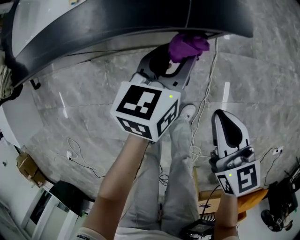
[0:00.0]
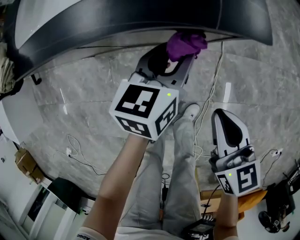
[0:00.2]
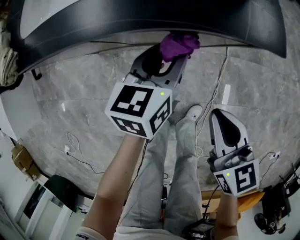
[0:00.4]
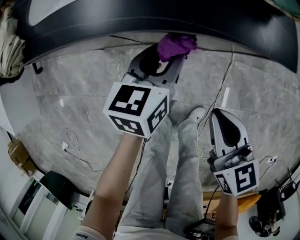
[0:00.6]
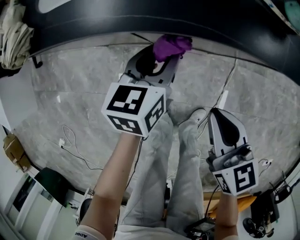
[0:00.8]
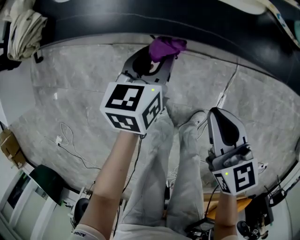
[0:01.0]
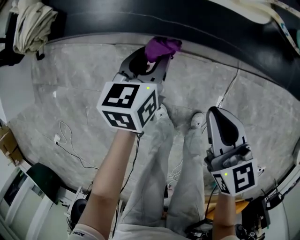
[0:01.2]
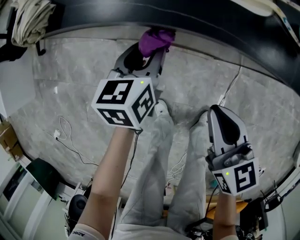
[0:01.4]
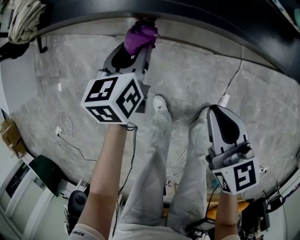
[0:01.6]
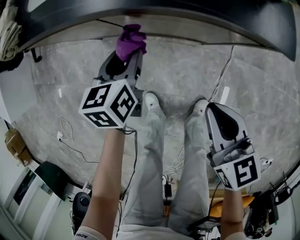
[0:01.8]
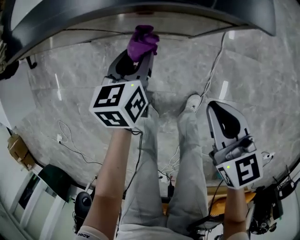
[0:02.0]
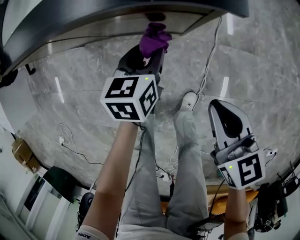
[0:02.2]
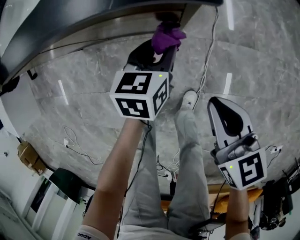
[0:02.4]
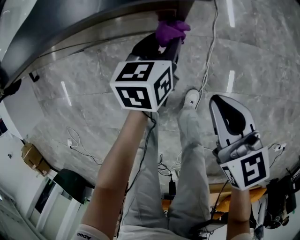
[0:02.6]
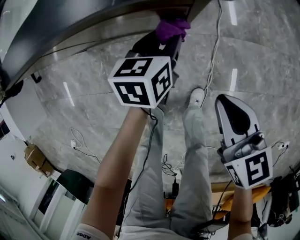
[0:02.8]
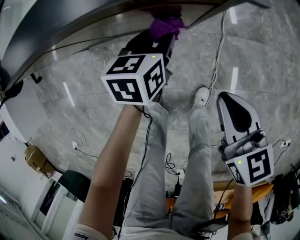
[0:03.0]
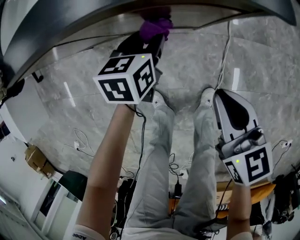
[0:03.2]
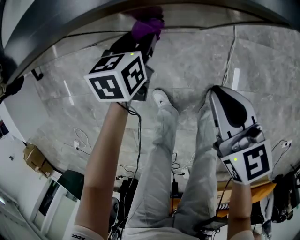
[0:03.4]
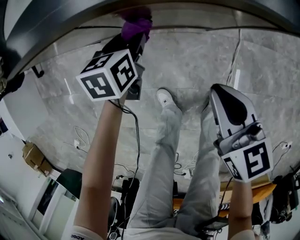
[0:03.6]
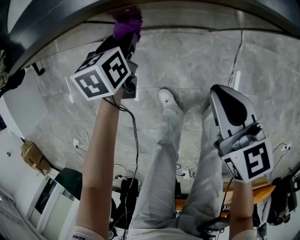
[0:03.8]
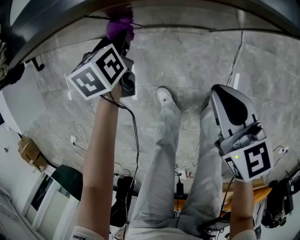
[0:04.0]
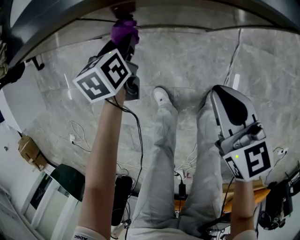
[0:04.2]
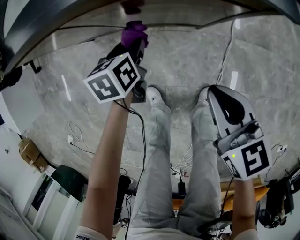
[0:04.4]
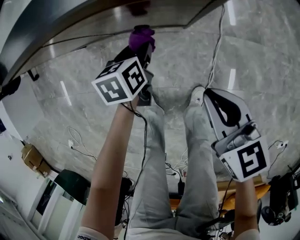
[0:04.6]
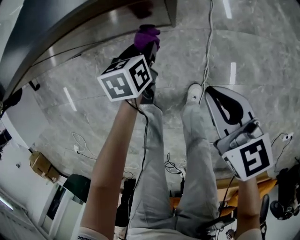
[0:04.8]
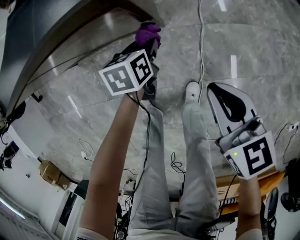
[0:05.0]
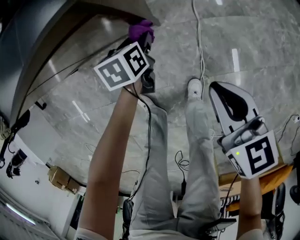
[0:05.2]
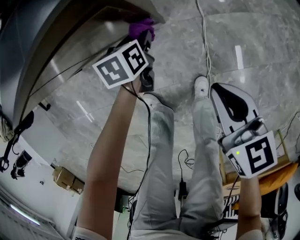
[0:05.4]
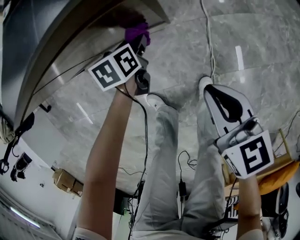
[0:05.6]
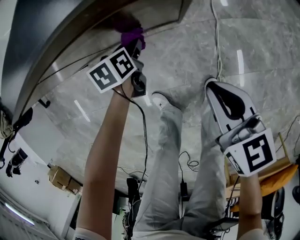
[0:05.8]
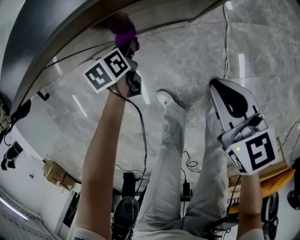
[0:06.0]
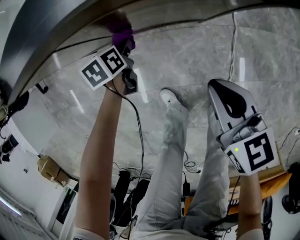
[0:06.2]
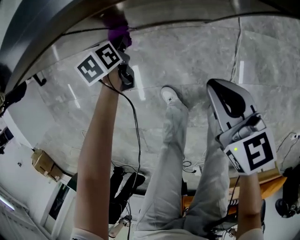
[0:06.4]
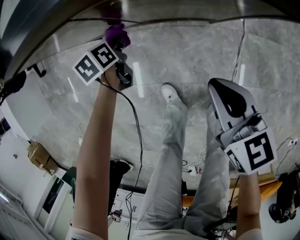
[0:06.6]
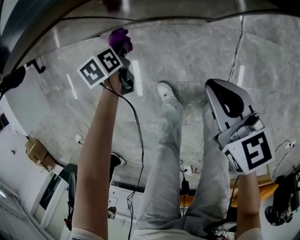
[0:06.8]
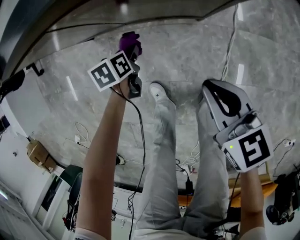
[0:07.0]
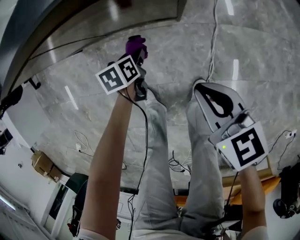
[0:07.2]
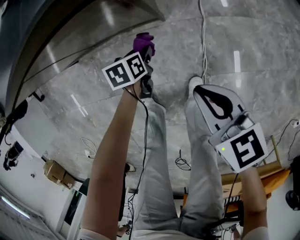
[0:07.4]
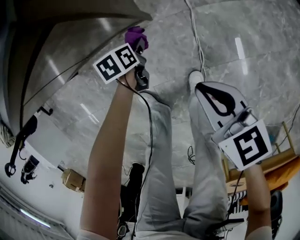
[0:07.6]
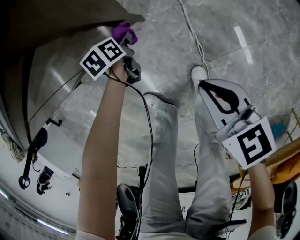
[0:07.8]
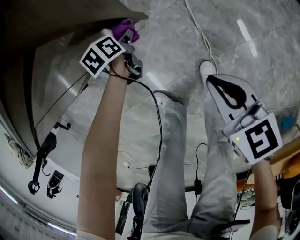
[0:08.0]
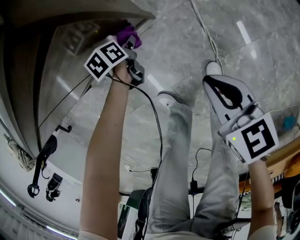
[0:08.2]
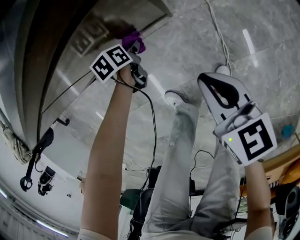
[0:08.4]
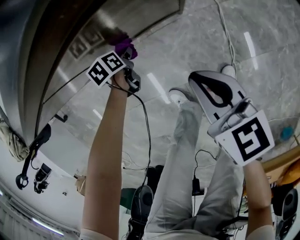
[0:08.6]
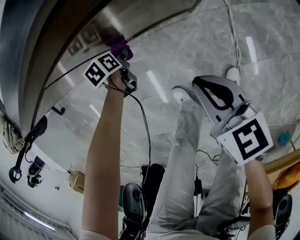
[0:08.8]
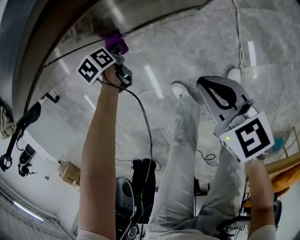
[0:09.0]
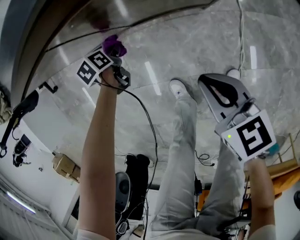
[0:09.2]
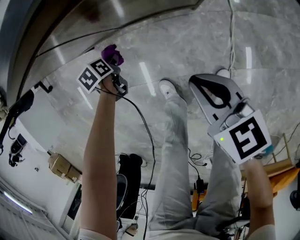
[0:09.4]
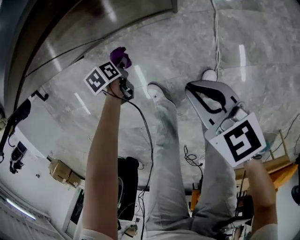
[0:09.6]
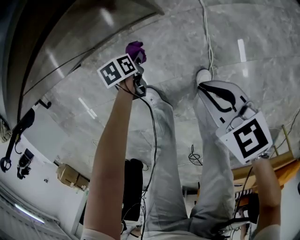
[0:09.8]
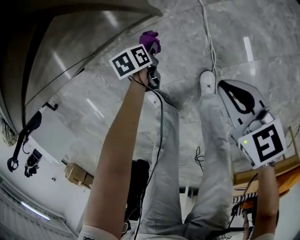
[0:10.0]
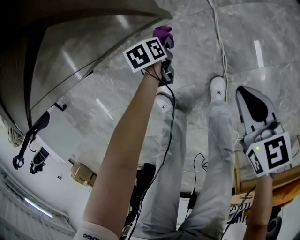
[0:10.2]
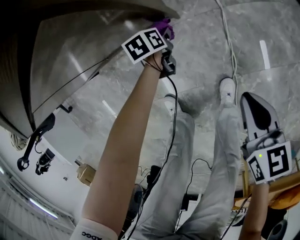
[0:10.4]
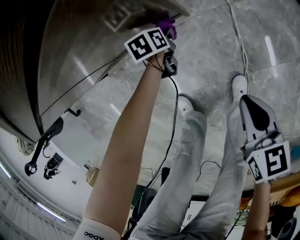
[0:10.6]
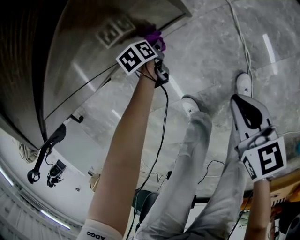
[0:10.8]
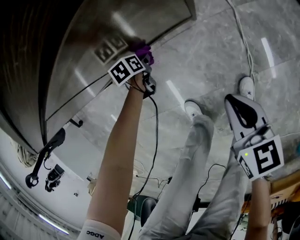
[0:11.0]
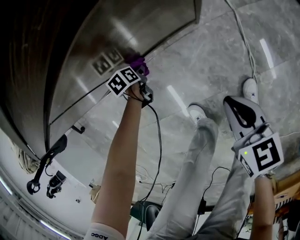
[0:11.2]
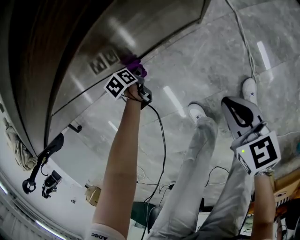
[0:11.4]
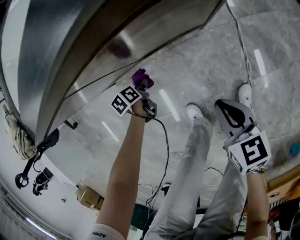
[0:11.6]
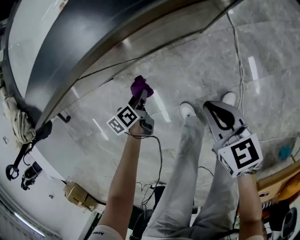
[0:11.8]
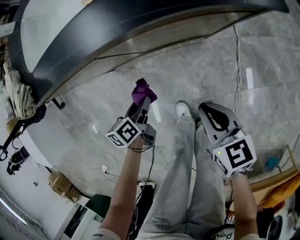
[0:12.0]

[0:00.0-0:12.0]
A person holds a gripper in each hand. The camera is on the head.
0:00.0 to 0:01.6: The right gripper shifts some 20 cm to the left, while the left gripper moves to the left, approximately 30 cm, and changes its angle by approximately 30 degrees.
0:01.6 to 0:03.0: The two grippers go about 25 cm to the right. The left gripper turns by roughly 20 degrees.
0:03.0 to 0:04.4: The left gripper shifts roughly 15 cm to the left. Meanwhile the right gripper travels to the left by about 10 cm.
0:04.4 to 0:06.0: The right gripper moves some 15 cm to the right and comes back. The left gripper heads downward, covering about 10 cm, and reaches roughly 25 cm to the right, then returns.
0:06.0 to 0:07.6: Both grippers move to the right and backward, some 15 cm.
0:07.6 to 0:09.0: Both grippers move to the left, roughly 30 cm.
0:09.0 to 0:10.4: The right gripper moves approximately 30 cm. Meanwhile the left gripper shifts by about 35 cm.
0:10.4 to 0:12.0: The left gripper ends up roughly 40 cm from where it was, and swivels approximately 30 degrees. Meanwhile the right gripper changes place by roughly 35 cm.

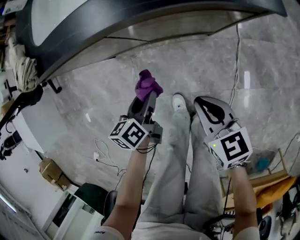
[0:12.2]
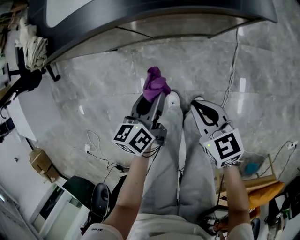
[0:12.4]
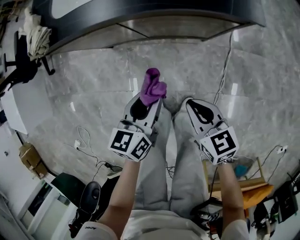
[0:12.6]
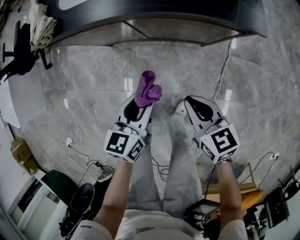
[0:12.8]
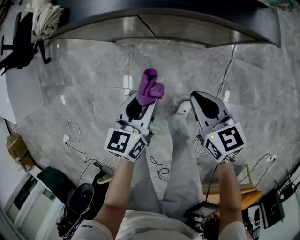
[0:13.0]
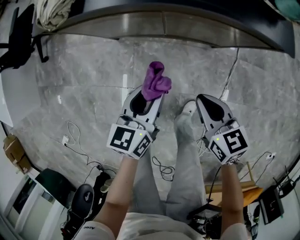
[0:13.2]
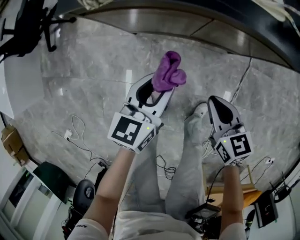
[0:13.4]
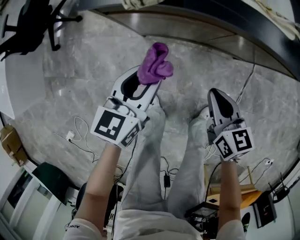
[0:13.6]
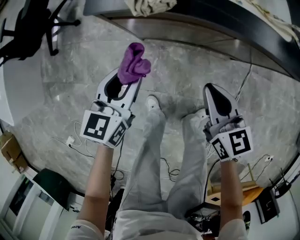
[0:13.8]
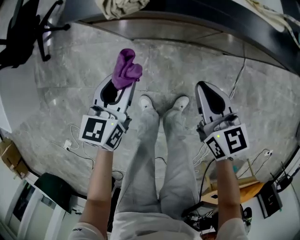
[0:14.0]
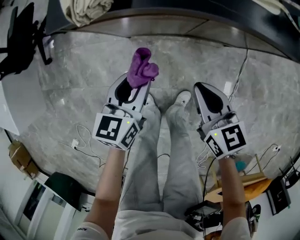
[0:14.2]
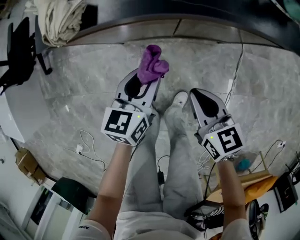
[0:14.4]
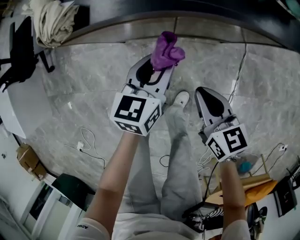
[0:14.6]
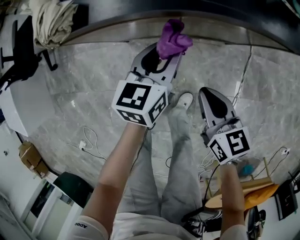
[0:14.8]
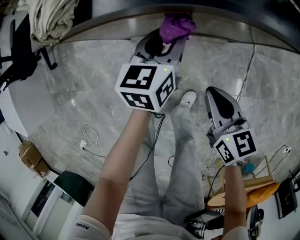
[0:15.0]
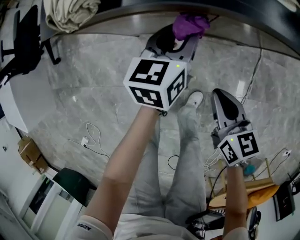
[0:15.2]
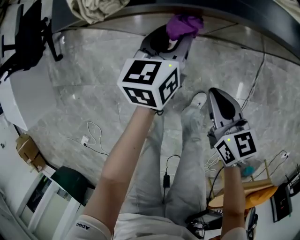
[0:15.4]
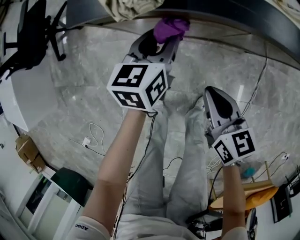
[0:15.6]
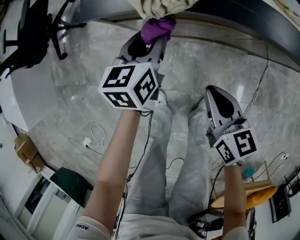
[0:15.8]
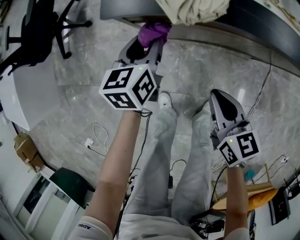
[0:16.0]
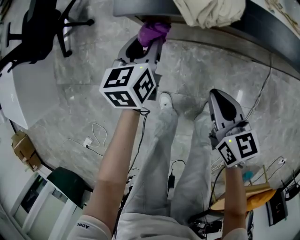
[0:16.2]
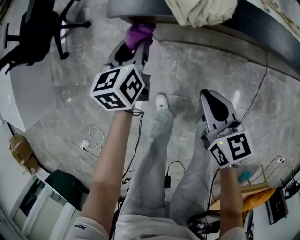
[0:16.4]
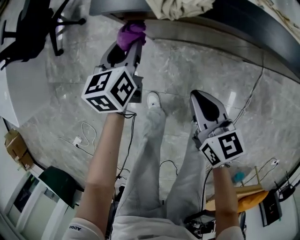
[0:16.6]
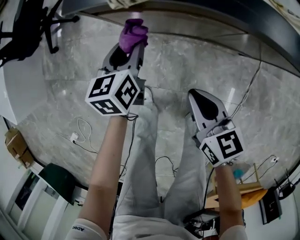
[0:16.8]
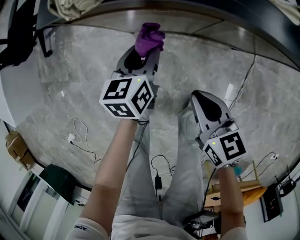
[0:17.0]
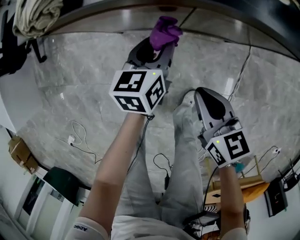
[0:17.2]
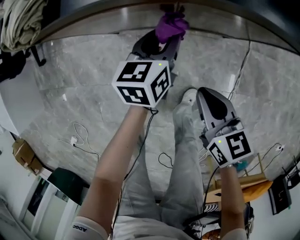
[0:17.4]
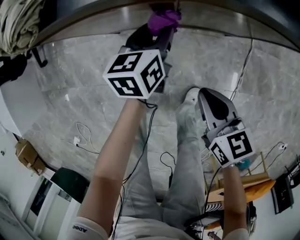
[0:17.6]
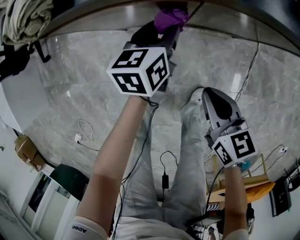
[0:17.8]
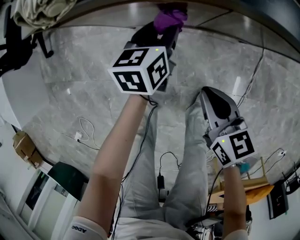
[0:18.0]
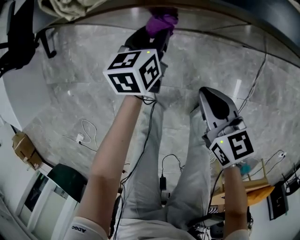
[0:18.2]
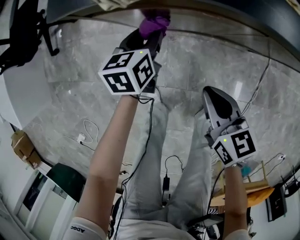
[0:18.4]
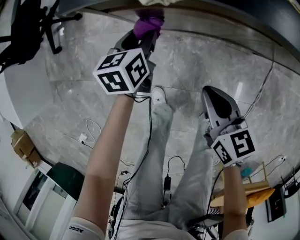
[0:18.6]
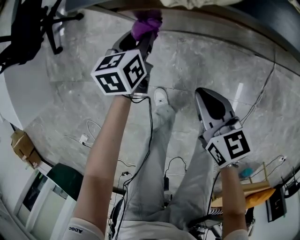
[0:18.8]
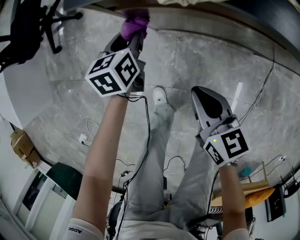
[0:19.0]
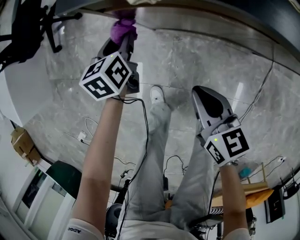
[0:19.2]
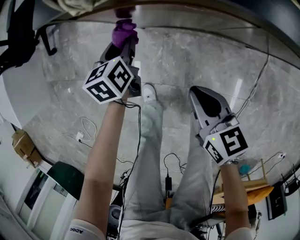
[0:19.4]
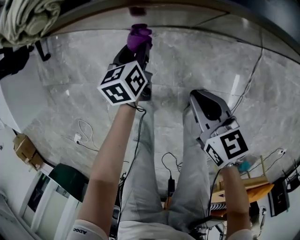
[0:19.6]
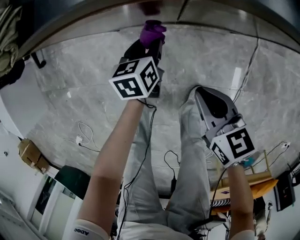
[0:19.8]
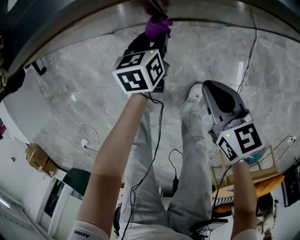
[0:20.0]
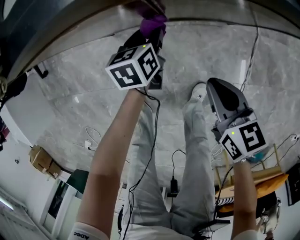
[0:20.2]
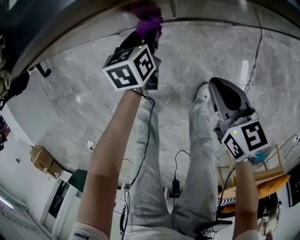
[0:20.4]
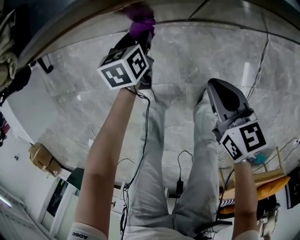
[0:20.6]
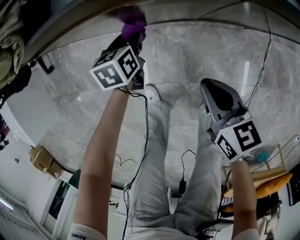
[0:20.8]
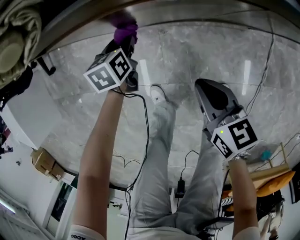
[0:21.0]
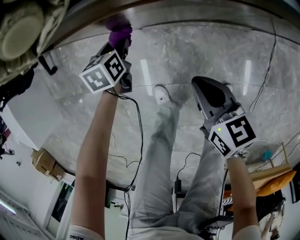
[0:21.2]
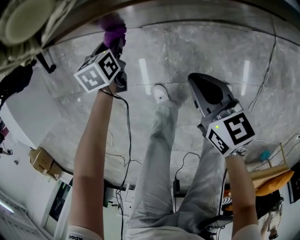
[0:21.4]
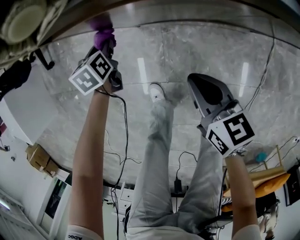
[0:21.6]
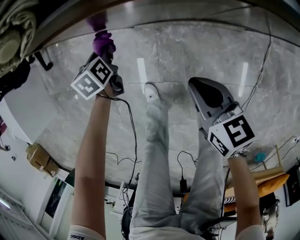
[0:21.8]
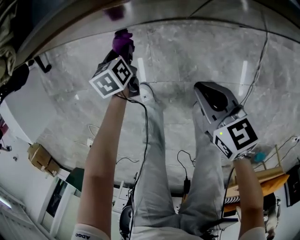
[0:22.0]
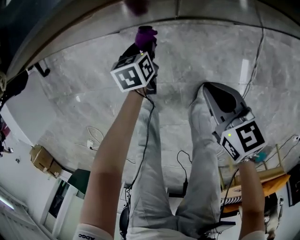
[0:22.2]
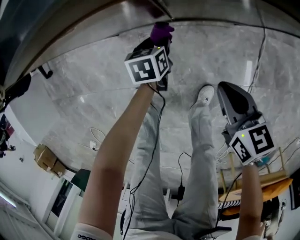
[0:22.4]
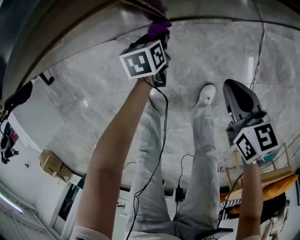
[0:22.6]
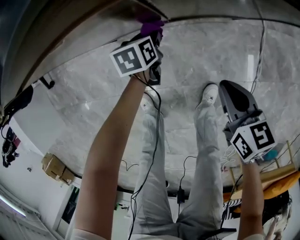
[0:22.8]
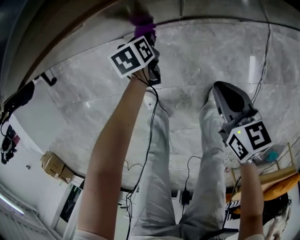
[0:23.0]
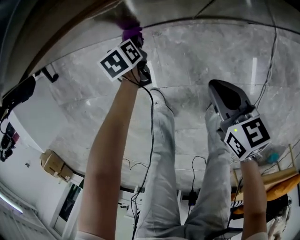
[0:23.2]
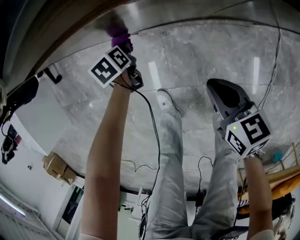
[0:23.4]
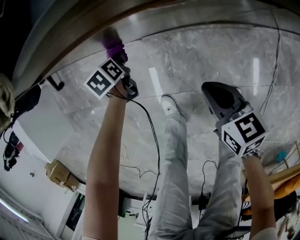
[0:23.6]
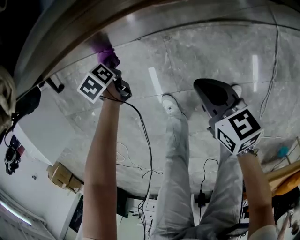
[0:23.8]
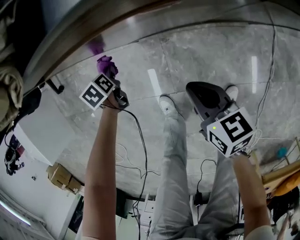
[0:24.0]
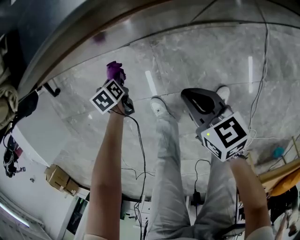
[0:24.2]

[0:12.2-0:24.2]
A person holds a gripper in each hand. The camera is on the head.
0:12.2 to 0:13.8: The left gripper goes about 35 cm to the left and upward, and swivels approximately 30 degrees. Meanwhile the right gripper travels to the left and forward by about 25 cm.
0:13.8 to 0:15.2: The left gripper travels to the right and forward by some 25 cm. Meanwhile the right gripper heads to the right and downward, covering roughly 15 cm.
0:15.2 to 0:16.6: The left gripper heads to the left, covering roughly 30 cm, and turns by roughly 20 degrees, while the right gripper heads to the left, covering about 15 cm.
0:16.6 to 0:18.2: The right gripper shifts roughly 10 cm to the right and downward; the left gripper travels to the right and downward by about 20 cm.
0:18.2 to 0:19.8: The left gripper goes some 10 cm downward and backward, and reaches about 20 cm to the left, then returns. Meanwhile the right gripper moves to the right, roughly 10 cm.
0:19.8 to 0:21.2: The left gripper is displaced to the left by some 25 cm; the right gripper shifts some 15 cm to the left.
0:21.2 to 0:22.6: The left gripper ends up some 30 cm from where it was, while the right gripper ends up roughly 25 cm from where it was.
0:22.6 to 0:24.2: The right gripper moves roughly 20 cm; the left gripper changes place by about 30 cm, and rotates about 20 degrees.
